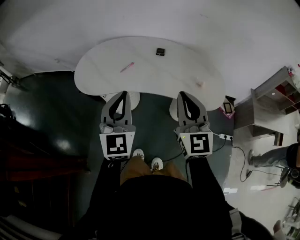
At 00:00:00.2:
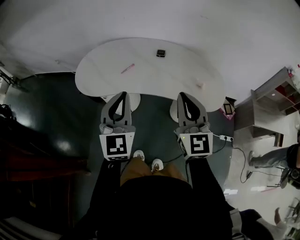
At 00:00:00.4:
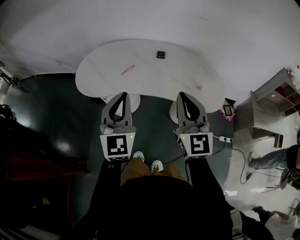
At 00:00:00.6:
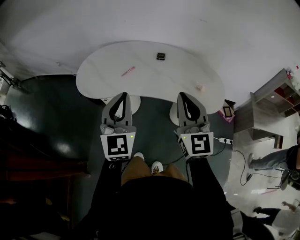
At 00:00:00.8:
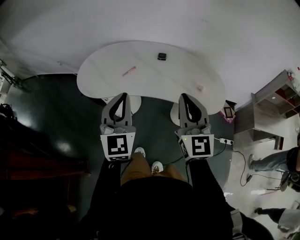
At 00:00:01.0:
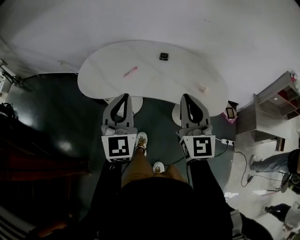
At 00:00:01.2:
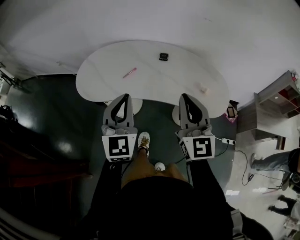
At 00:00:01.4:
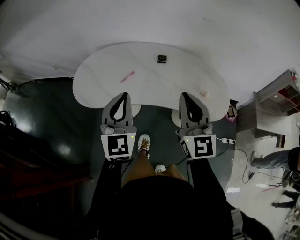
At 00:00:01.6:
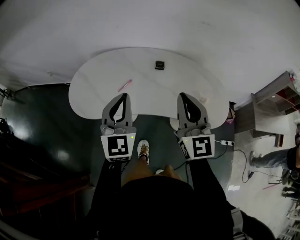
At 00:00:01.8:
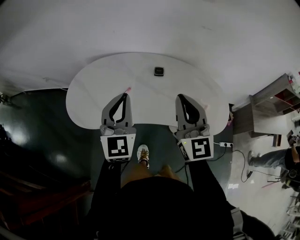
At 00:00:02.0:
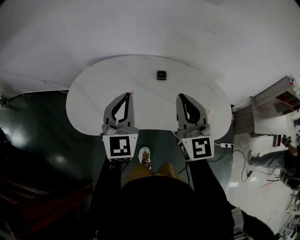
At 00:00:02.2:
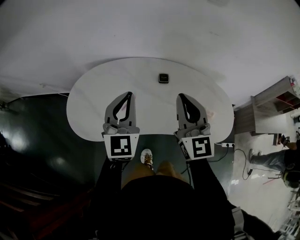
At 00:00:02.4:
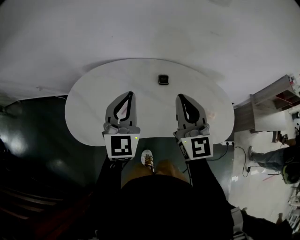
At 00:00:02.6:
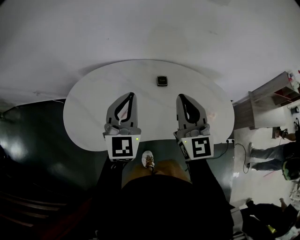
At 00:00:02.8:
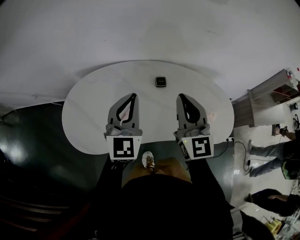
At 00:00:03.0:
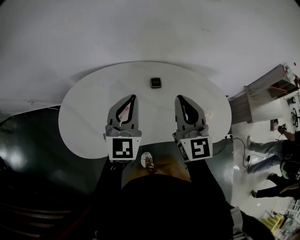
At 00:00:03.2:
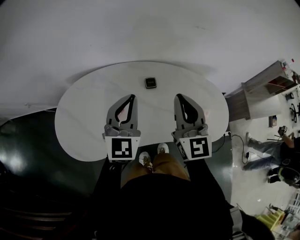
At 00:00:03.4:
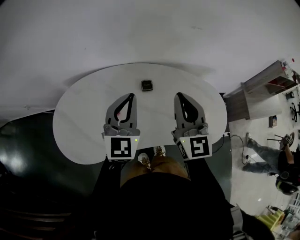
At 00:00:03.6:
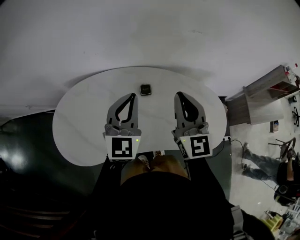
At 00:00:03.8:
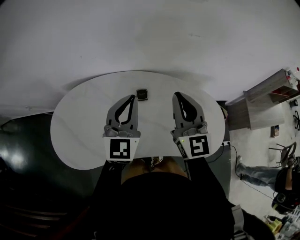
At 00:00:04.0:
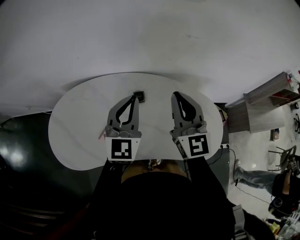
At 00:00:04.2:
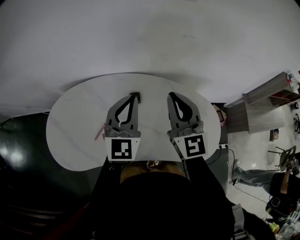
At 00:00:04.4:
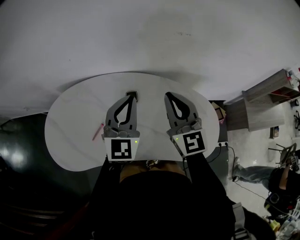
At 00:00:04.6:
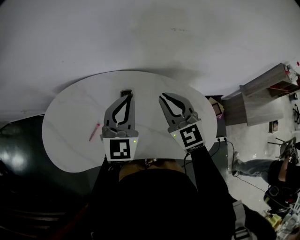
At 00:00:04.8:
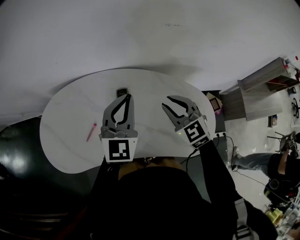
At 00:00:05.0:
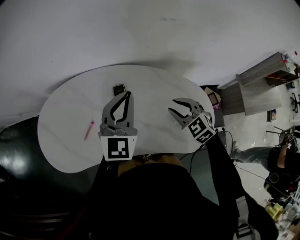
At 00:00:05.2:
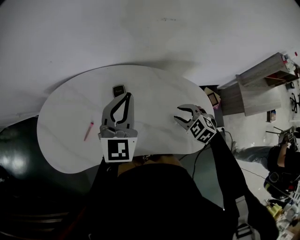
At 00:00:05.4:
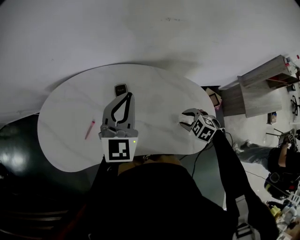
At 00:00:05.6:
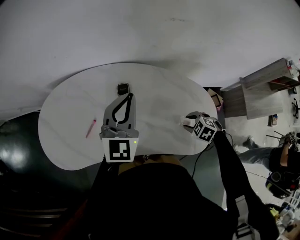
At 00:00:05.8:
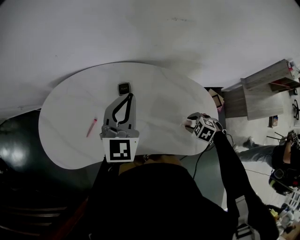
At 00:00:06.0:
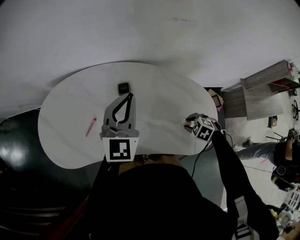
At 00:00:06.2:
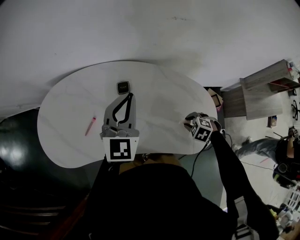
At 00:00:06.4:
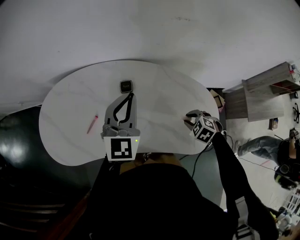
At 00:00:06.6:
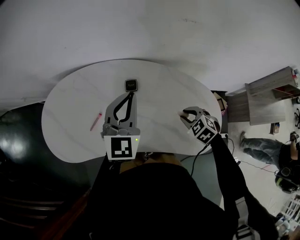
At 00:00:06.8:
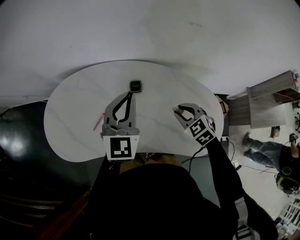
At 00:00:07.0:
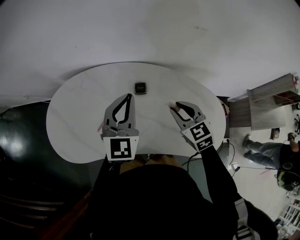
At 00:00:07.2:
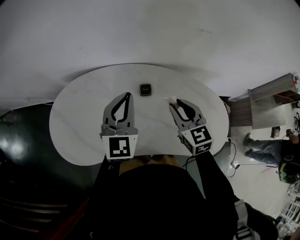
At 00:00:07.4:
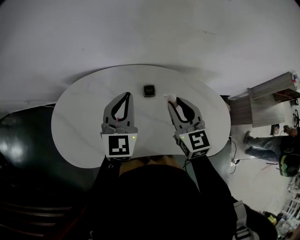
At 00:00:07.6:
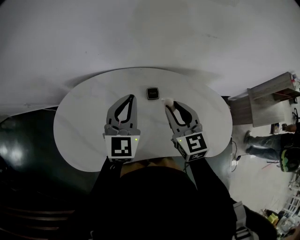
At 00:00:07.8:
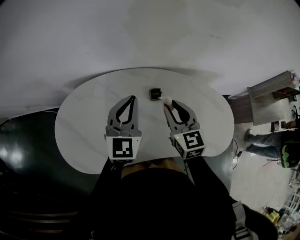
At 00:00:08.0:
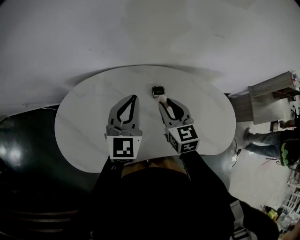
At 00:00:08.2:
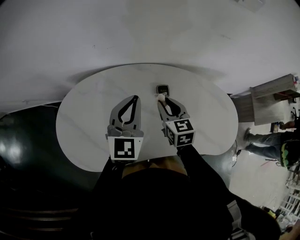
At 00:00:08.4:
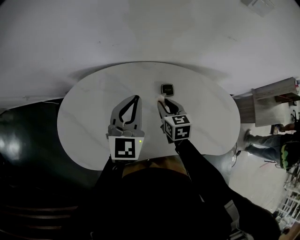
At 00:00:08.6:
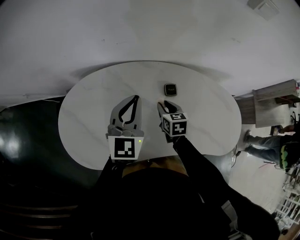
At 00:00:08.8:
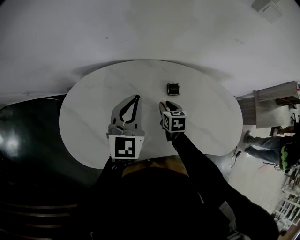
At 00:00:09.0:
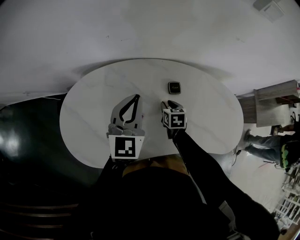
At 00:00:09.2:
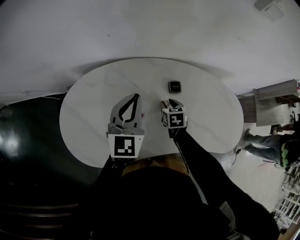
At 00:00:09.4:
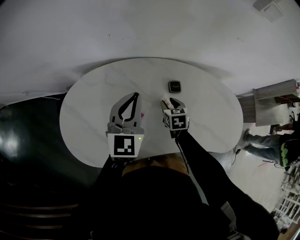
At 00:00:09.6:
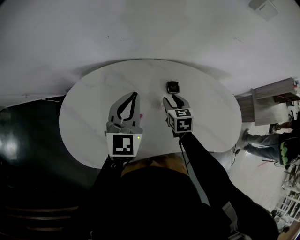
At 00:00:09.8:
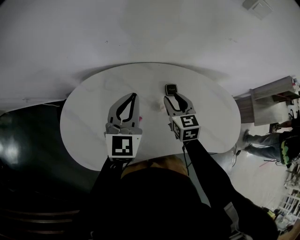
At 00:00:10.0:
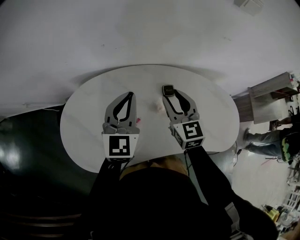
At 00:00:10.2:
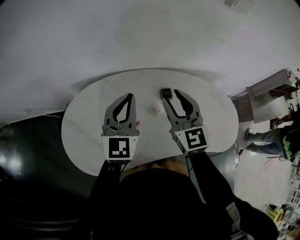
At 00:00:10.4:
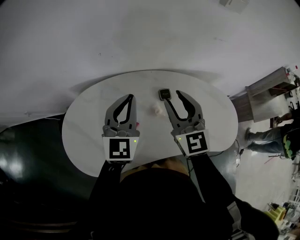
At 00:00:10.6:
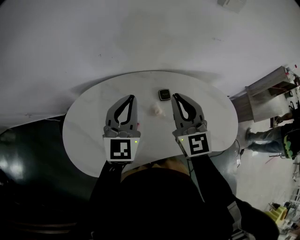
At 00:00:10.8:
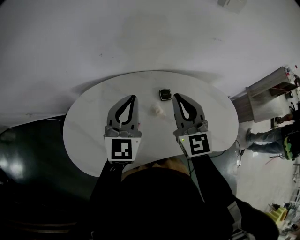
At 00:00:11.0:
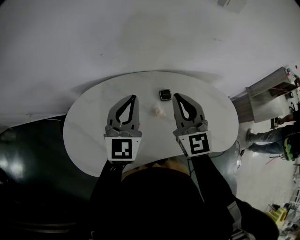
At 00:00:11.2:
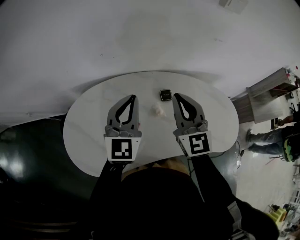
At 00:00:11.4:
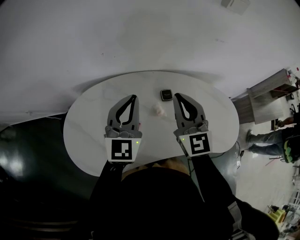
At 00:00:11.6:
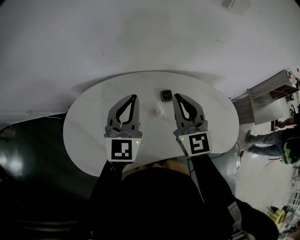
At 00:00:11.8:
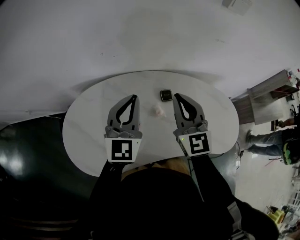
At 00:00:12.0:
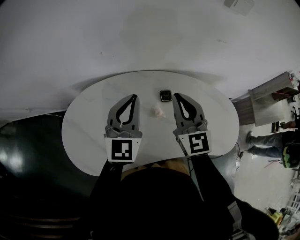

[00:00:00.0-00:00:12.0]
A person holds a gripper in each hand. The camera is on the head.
00:00:00.0 to 00:00:01.6: Both grippers travel together forward, some 15 cm.
00:00:01.6 to 00:00:03.0: The two grippers go some 15 cm forward.
00:00:03.0 to 00:00:04.4: The right gripper is displaced forward and to the right by about 15 cm. The left gripper travels to the right and forward by approximately 15 cm.
00:00:04.4 to 00:00:06.0: The right gripper shifts some 35 cm downward and backward, tilts its fingers roughly 80 degrees downward, and opens up.
00:00:06.0 to 00:00:07.6: The left gripper shifts by about 15 cm. The right gripper shifts by approximately 35 cm, and tips its fingers upward by about 60 degrees.
00:00:07.6 to 00:00:09.0: The left gripper moves to the left, about 10 cm, while the right gripper moves downward, about 25 cm, and tilts its fingers approximately 30 degrees downward.
00:00:09.0 to 00:00:10.4: The left gripper heads upward, covering about 5 cm, while the right gripper shifts approximately 30 cm upward, and tips its fingers upward by about 50 degrees.
00:00:10.4 to 00:00:12.0: The right gripper closes its fingers.

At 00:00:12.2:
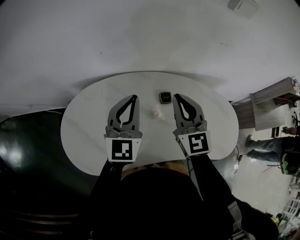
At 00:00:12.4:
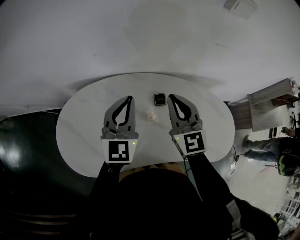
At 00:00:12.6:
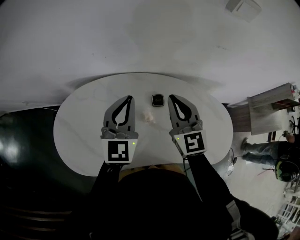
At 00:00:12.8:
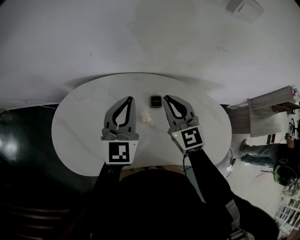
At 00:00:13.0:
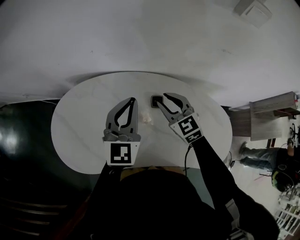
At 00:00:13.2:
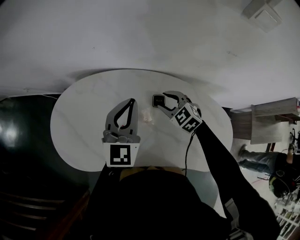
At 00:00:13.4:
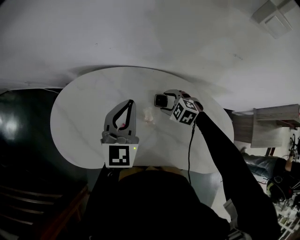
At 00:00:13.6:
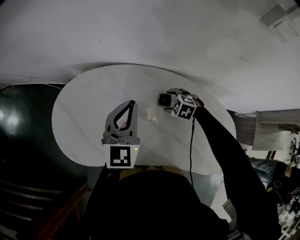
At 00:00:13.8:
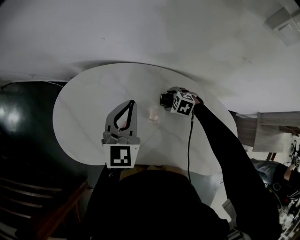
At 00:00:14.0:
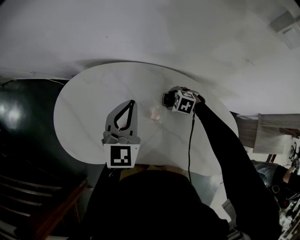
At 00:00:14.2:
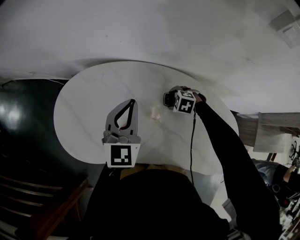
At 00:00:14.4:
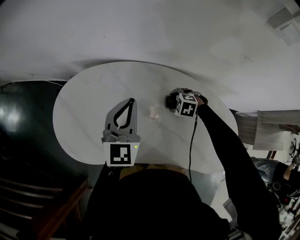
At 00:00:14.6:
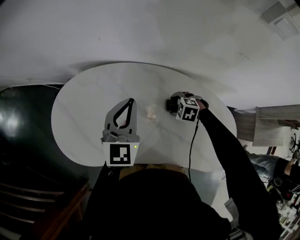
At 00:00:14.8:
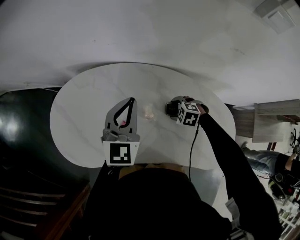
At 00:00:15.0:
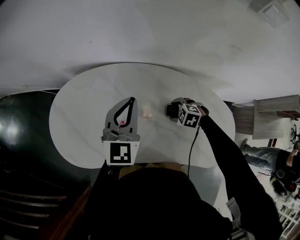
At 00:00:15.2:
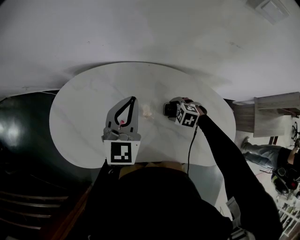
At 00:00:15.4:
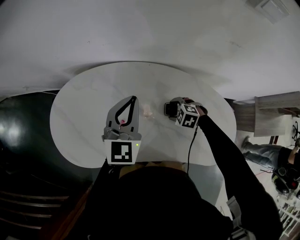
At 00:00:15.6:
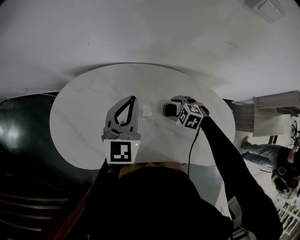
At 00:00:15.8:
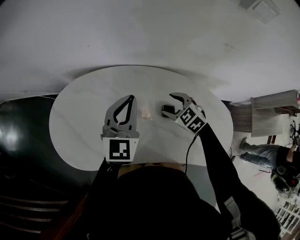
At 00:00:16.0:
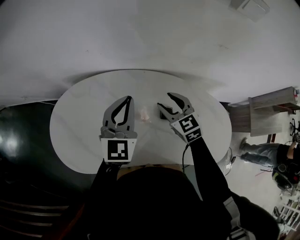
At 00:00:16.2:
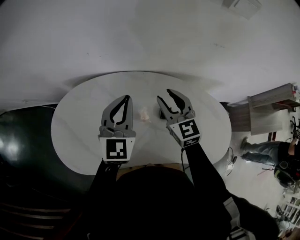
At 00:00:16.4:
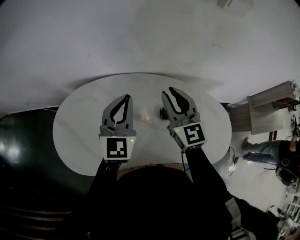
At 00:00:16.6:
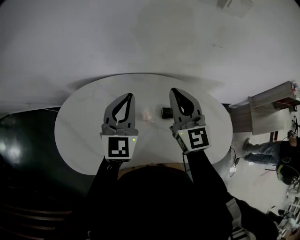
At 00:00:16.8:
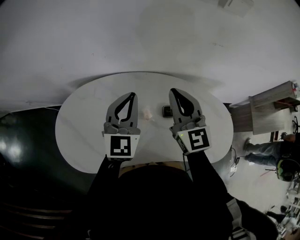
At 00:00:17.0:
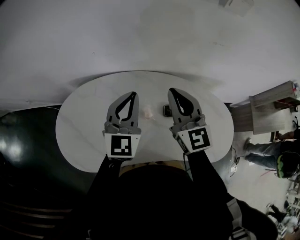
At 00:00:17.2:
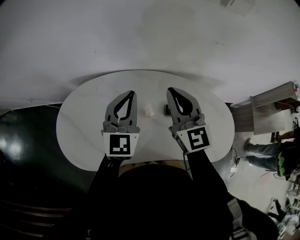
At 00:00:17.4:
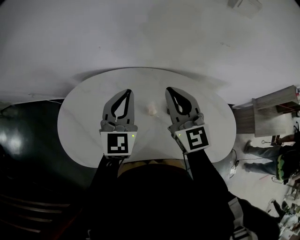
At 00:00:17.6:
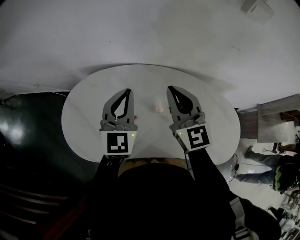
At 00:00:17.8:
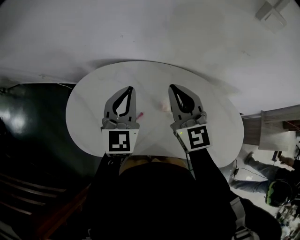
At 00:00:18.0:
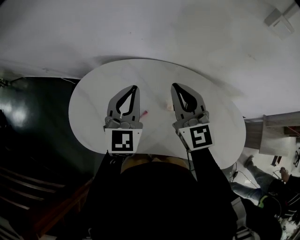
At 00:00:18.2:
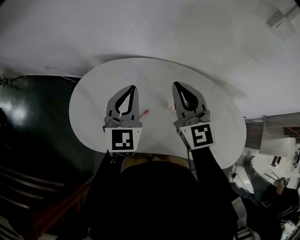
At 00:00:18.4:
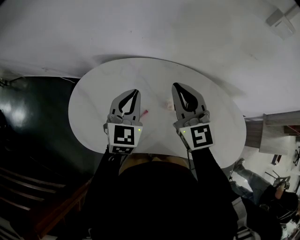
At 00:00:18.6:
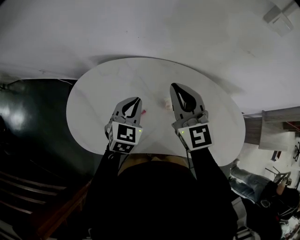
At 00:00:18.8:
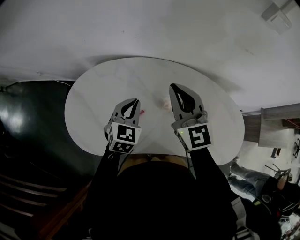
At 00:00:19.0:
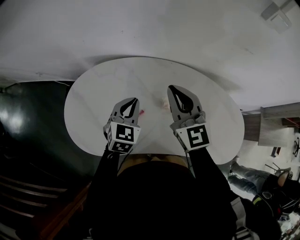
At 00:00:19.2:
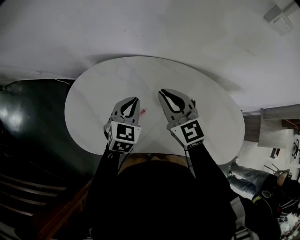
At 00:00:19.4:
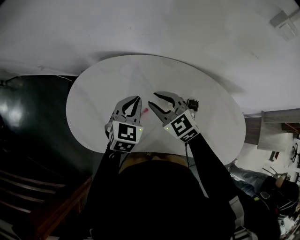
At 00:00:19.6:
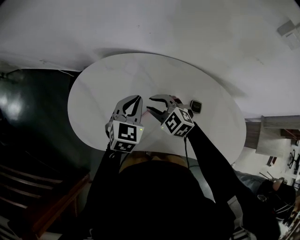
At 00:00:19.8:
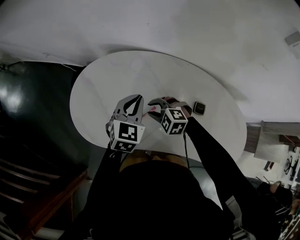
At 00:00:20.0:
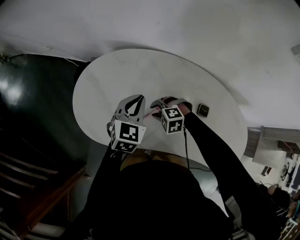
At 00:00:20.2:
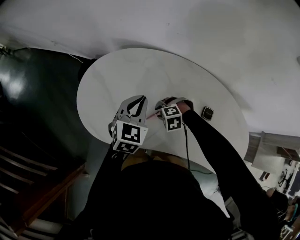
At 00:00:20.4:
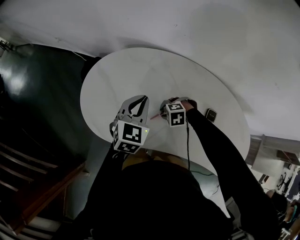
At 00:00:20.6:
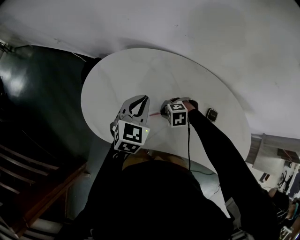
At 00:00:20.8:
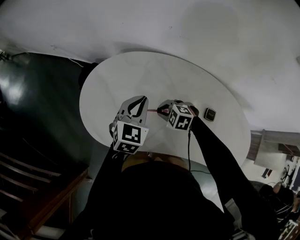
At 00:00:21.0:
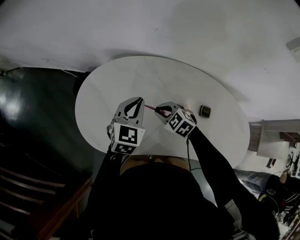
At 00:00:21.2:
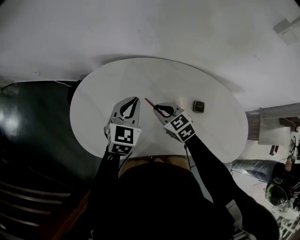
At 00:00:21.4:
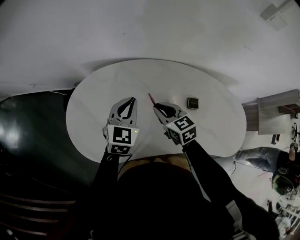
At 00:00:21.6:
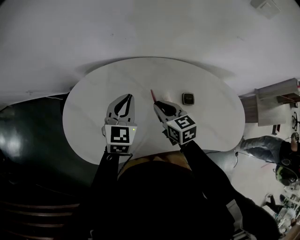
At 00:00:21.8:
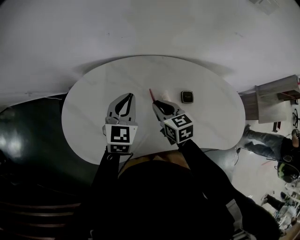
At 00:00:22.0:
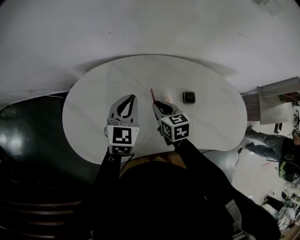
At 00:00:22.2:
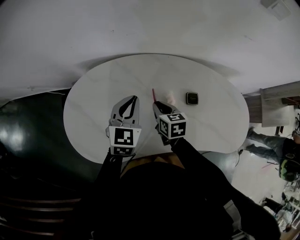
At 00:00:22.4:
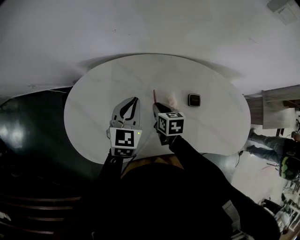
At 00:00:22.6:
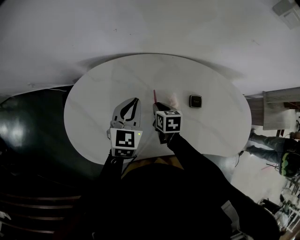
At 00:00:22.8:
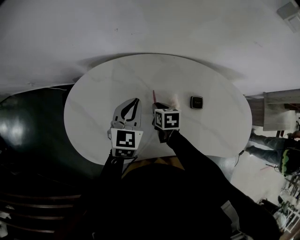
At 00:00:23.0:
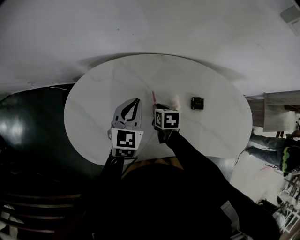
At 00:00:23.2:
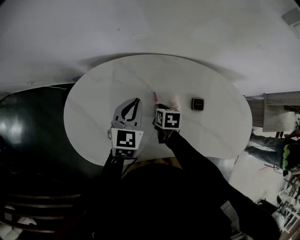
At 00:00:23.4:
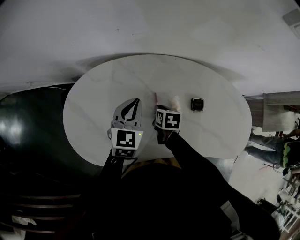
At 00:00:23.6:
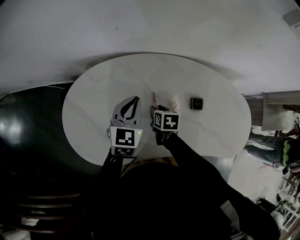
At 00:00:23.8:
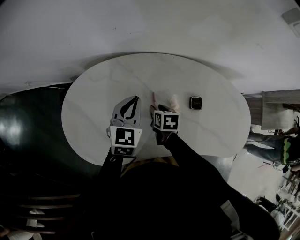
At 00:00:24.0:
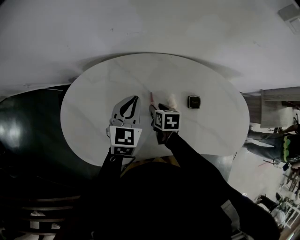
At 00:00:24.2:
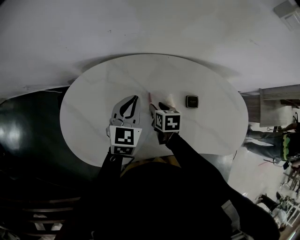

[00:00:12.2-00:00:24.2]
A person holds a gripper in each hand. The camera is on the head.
00:00:12.2 to 00:00:13.8: The right gripper travels downward by some 35 cm, angles its fingers downward, by some 70 degrees, and opens, while the left gripper heads downward, covering approximately 5 cm.
00:00:13.8 to 00:00:15.2: The right gripper goes about 10 cm backward.
00:00:15.2 to 00:00:16.6: The right gripper shifts about 35 cm upward, tilts its fingers about 70 degrees upward, and closes. The left gripper moves upward, some 5 cm.
00:00:16.6 to 00:00:18.2: The grippers both shift to the left by roughly 10 cm.
00:00:18.2 to 00:00:19.8: The left gripper travels downward by some 10 cm, and turns by about 20 degrees; the right gripper is displaced downward by roughly 25 cm, tilts its fingers approximately 50 degrees downward, and opens up.
00:00:19.8 to 00:00:21.2: The right gripper reaches some 10 cm downward, then returns, and twists approximately 40 degrees clockwise, seen from behind.
00:00:21.2 to 00:00:22.6: The left gripper moves to the right, approximately 5 cm. Meanwhile the right gripper travels downward and to the right by roughly 10 cm, and rolls clockwise, seen from behind, by about 40 degrees.
00:00:22.6 to 00:00:24.2: The right gripper opens its fingers.
